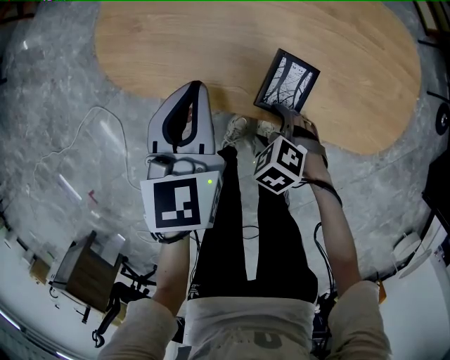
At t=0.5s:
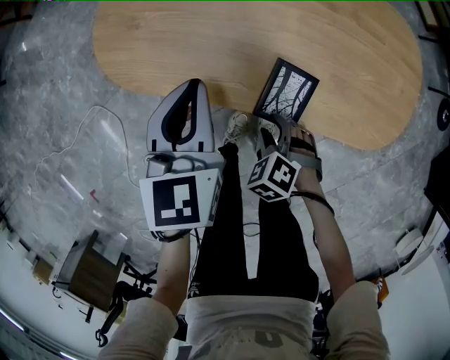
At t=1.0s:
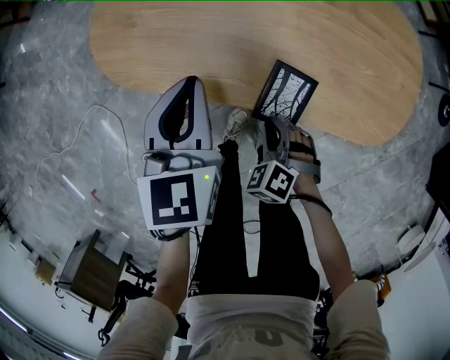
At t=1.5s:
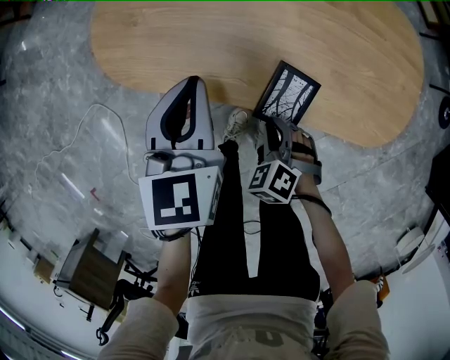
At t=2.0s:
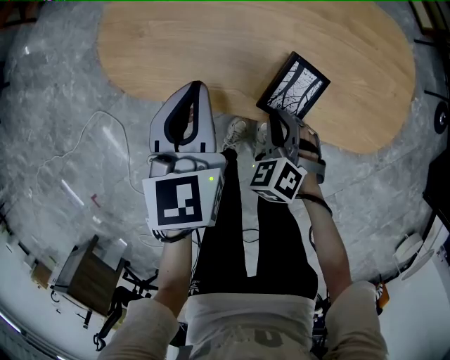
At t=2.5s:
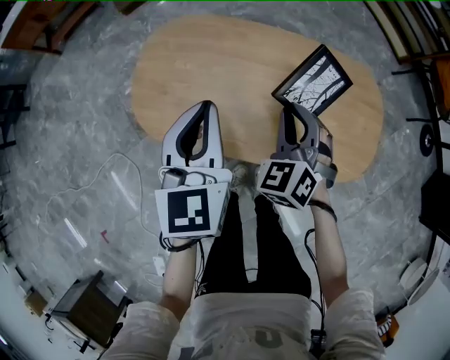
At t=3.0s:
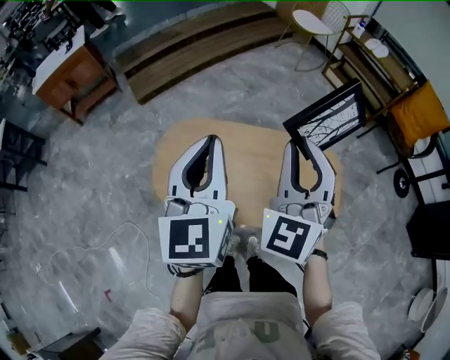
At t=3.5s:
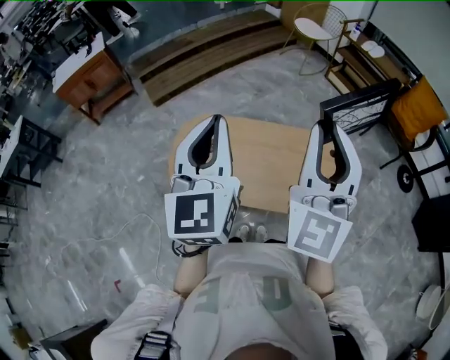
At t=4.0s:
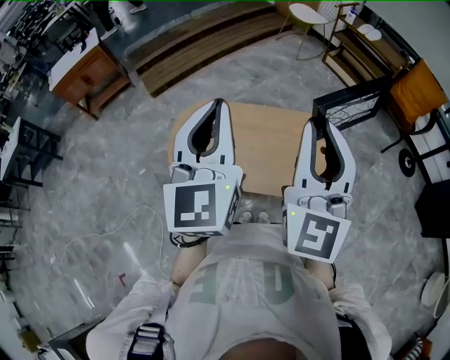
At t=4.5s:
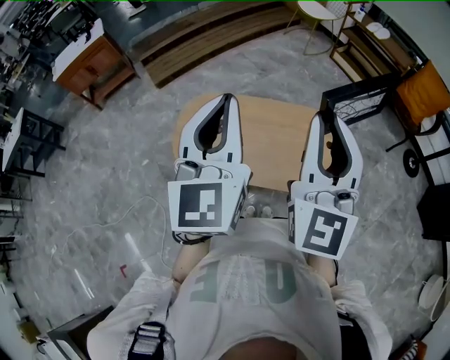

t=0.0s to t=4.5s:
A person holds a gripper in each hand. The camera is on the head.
t=0.0s to t=2.0s: The right gripper changes place by approximately 10 cm, swivels about 30 degrees, and closes.
t=2.0s to t=4.5s: Both grippers move upward, some 60 cm. The right gripper points its fingers some 70 degrees further upward, while the left gripper points its fingers some 30 degrees further upward.

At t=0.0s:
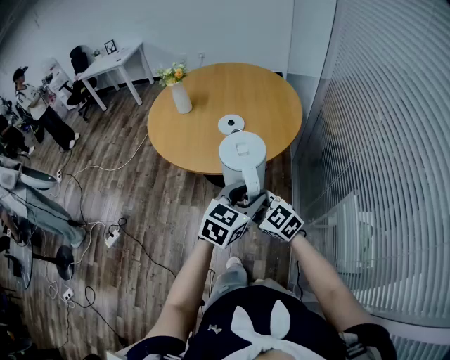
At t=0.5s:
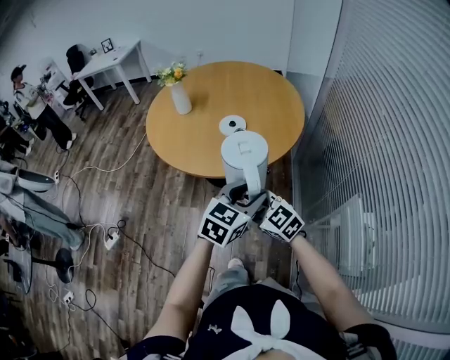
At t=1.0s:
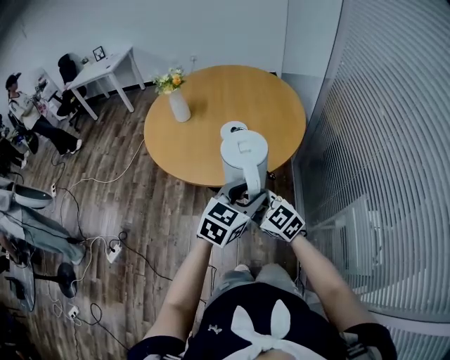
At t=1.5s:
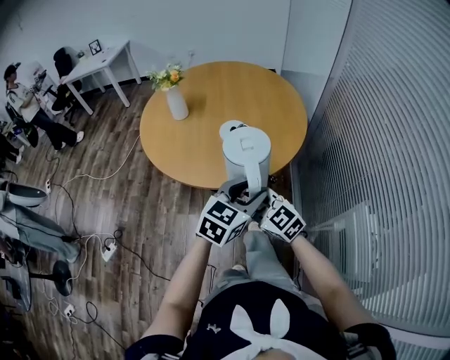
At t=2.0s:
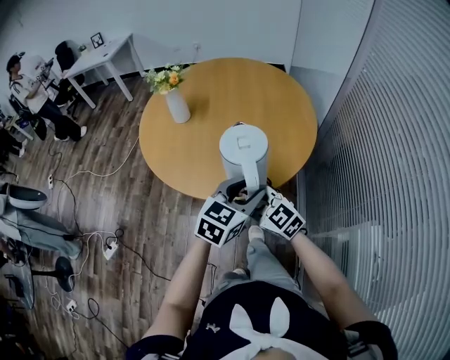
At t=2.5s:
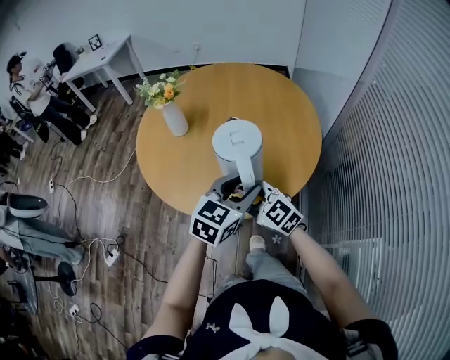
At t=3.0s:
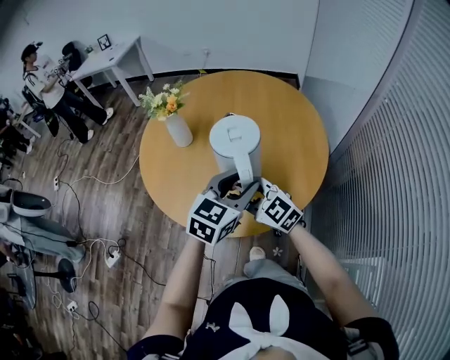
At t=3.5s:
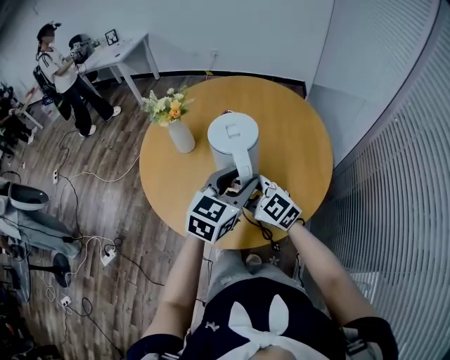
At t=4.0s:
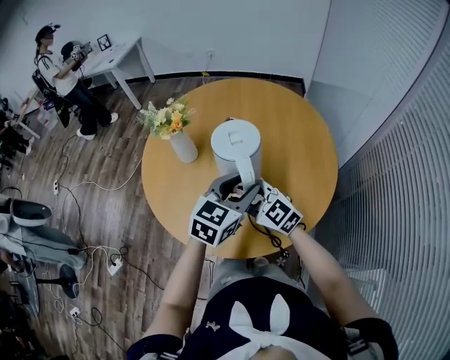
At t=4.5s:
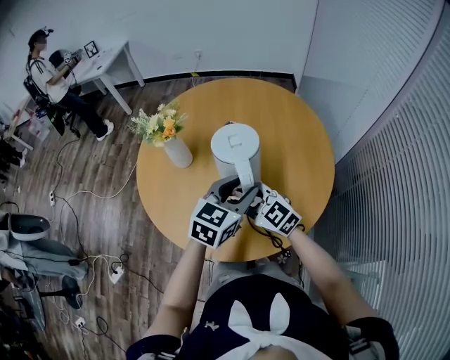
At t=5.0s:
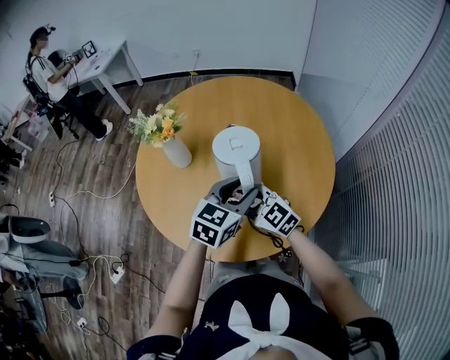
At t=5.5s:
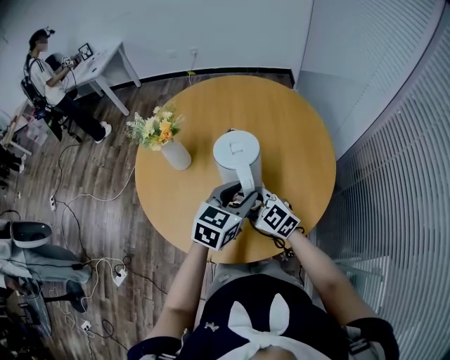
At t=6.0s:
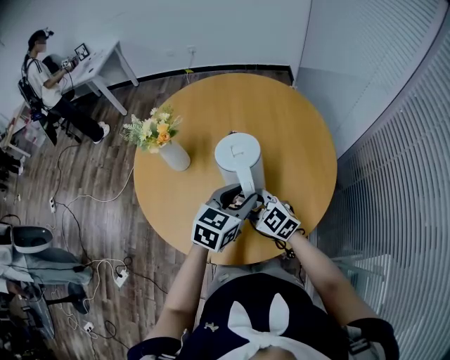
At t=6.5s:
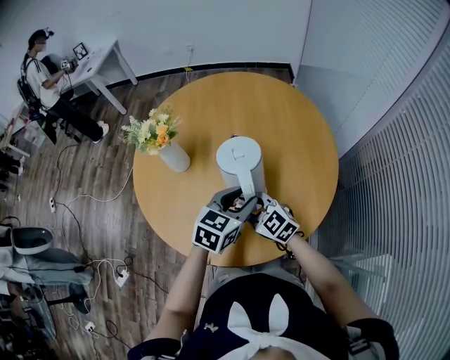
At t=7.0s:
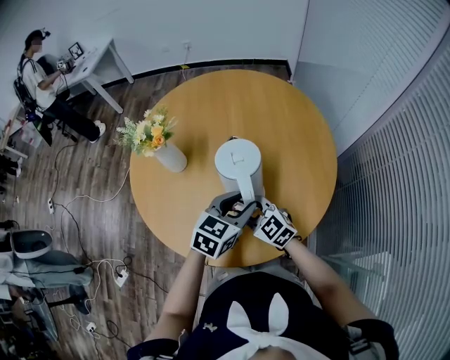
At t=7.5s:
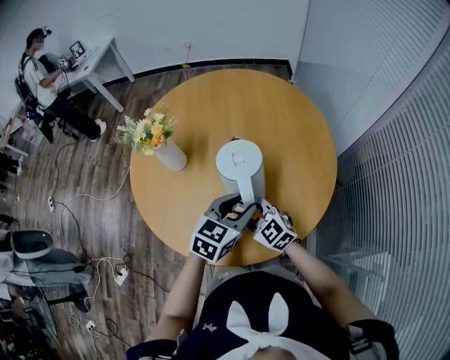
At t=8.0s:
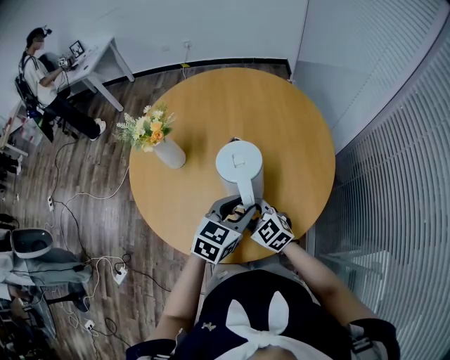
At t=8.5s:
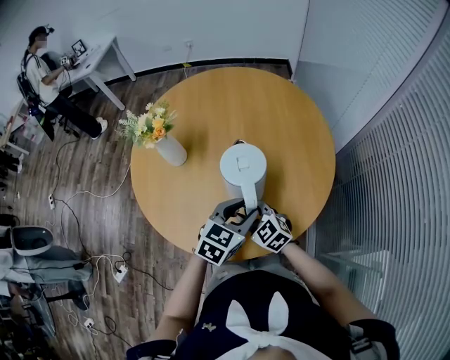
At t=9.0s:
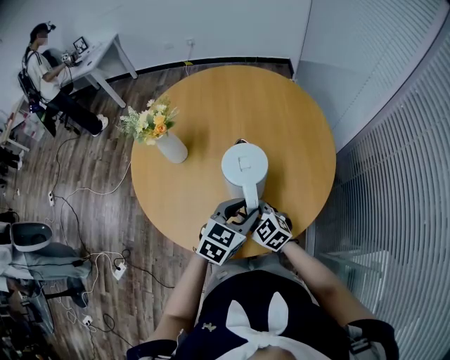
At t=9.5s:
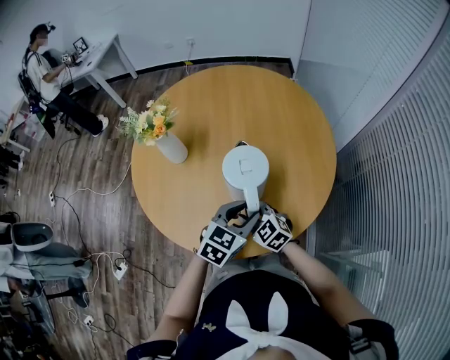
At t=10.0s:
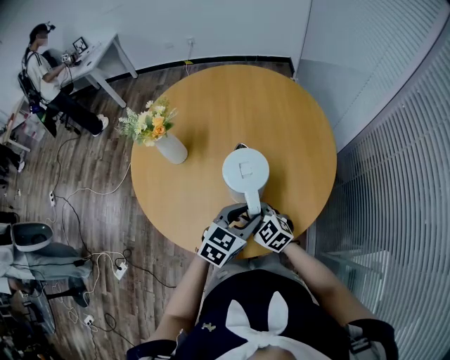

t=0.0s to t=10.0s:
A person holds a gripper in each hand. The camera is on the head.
t=0.0s to t=2.0s: Both grippers travel together forward, about 15 cm.
t=2.0s to t=4.0s: Both grippers travel together forward, some 25 cm.
t=4.0s to t=6.0s: The two grippers go approximately 5 cm downward.
t=6.0s to t=8.0s: The grippers make only small movements.
t=8.0s to t=10.0s: The grippers make only small movements.

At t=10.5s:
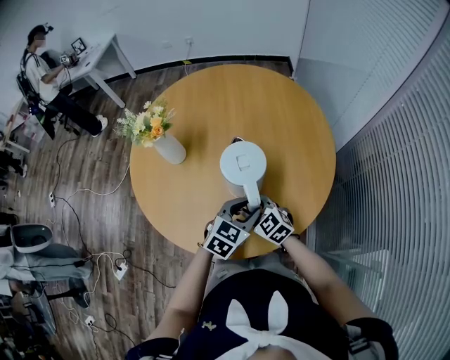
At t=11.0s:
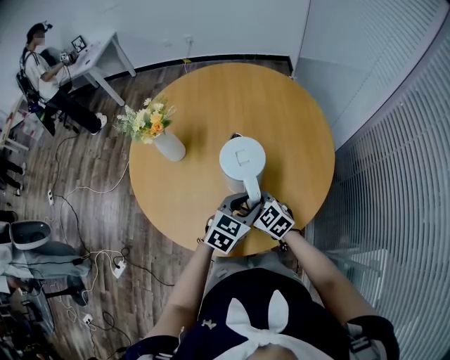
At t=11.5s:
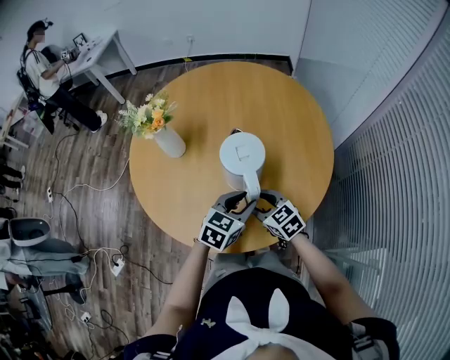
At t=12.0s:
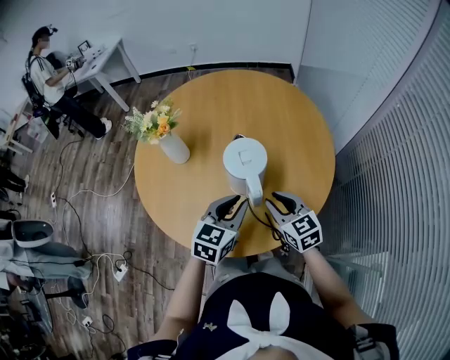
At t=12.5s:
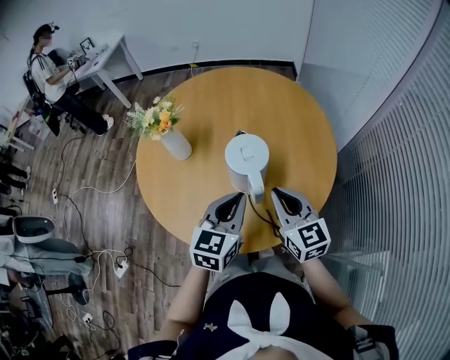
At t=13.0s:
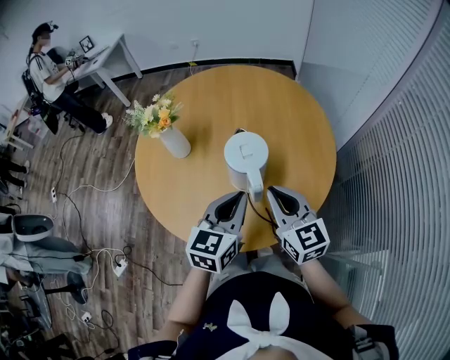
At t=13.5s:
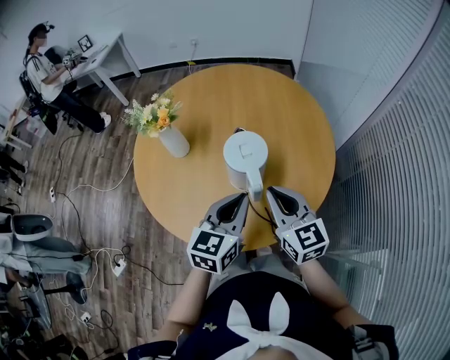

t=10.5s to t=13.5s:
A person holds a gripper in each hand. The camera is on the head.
t=10.5s to t=12.0s: The right gripper goes approximately 10 cm to the right and upward, and rotates about 20 degrees, while the left gripper is displaced upward by about 5 cm.
t=12.0s to t=13.5s: The right gripper shifts about 10 cm upward, while the left gripper is displaced upward by some 5 cm.

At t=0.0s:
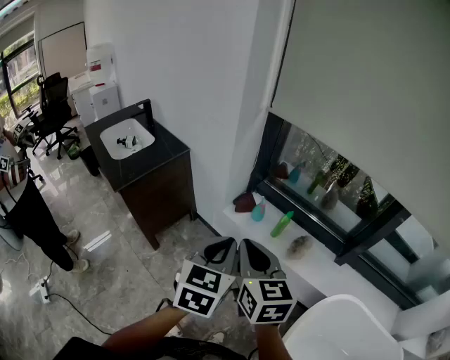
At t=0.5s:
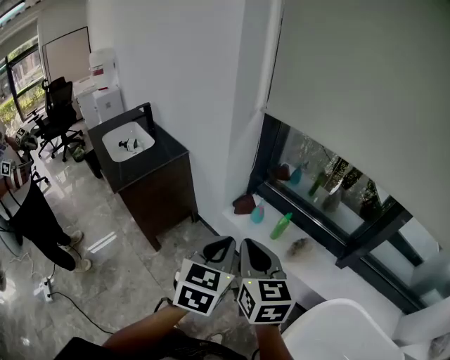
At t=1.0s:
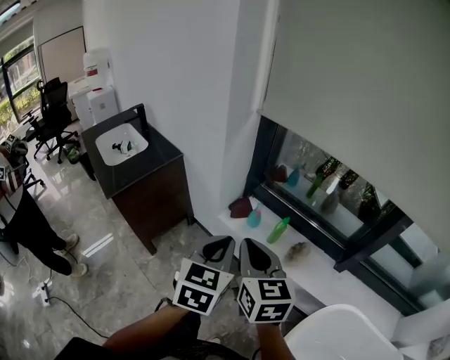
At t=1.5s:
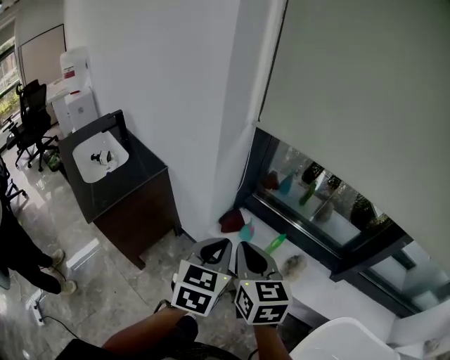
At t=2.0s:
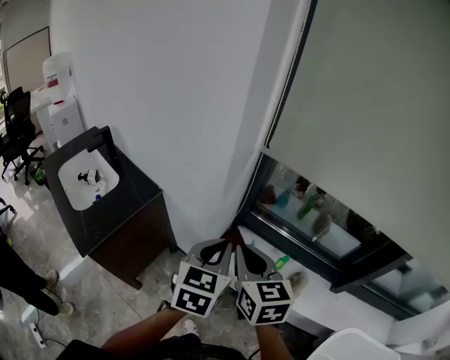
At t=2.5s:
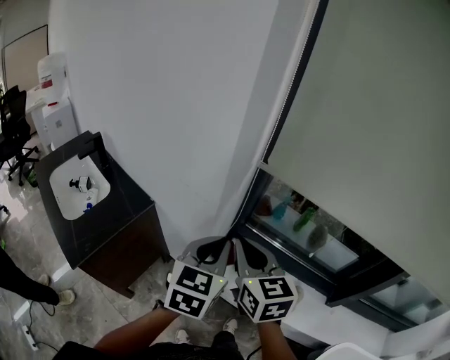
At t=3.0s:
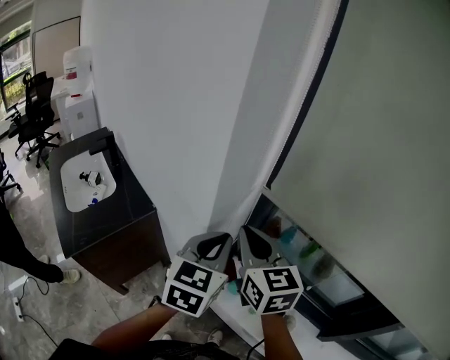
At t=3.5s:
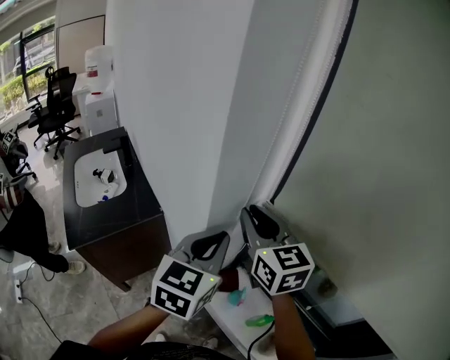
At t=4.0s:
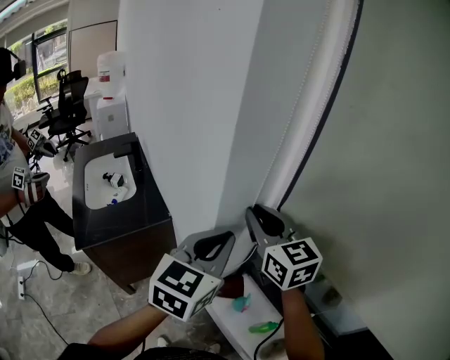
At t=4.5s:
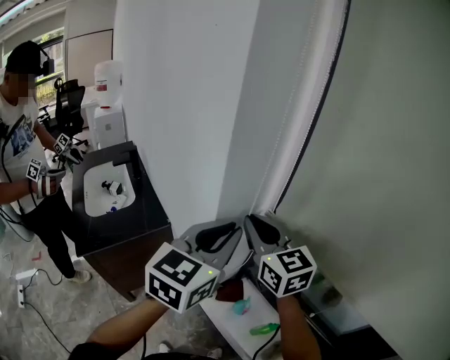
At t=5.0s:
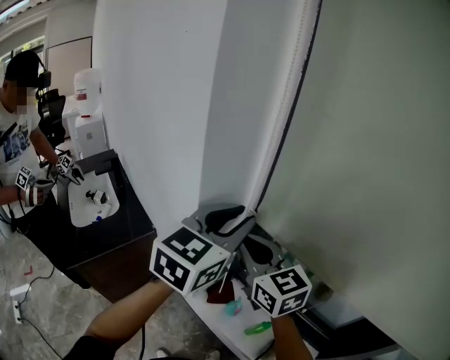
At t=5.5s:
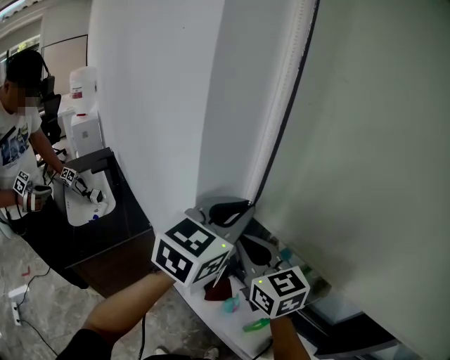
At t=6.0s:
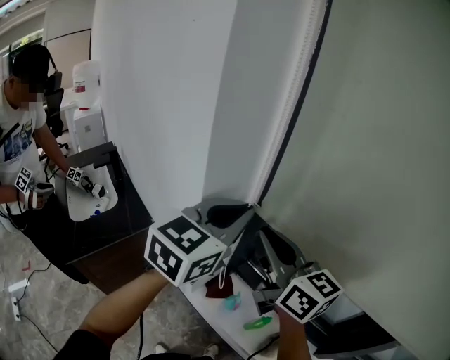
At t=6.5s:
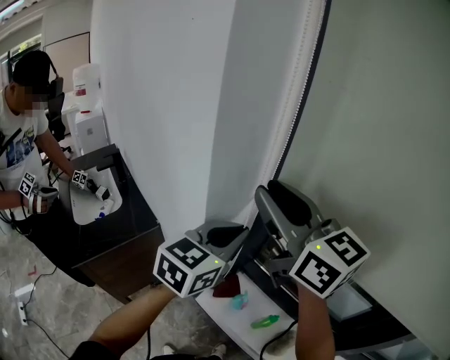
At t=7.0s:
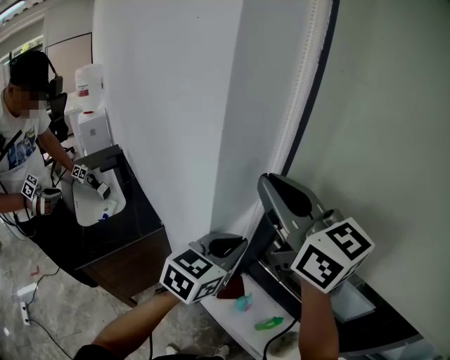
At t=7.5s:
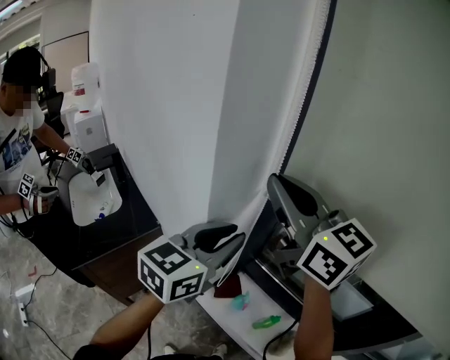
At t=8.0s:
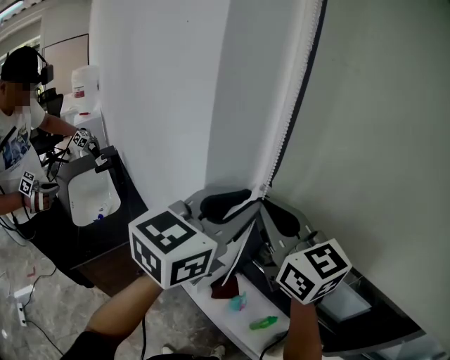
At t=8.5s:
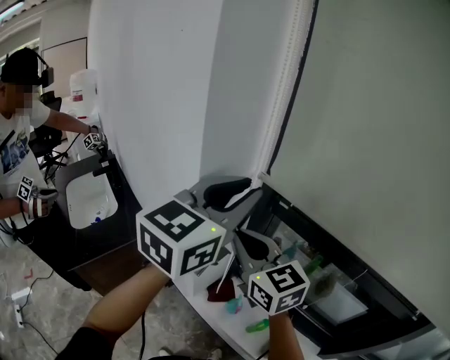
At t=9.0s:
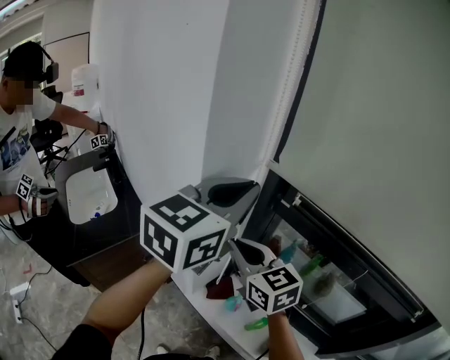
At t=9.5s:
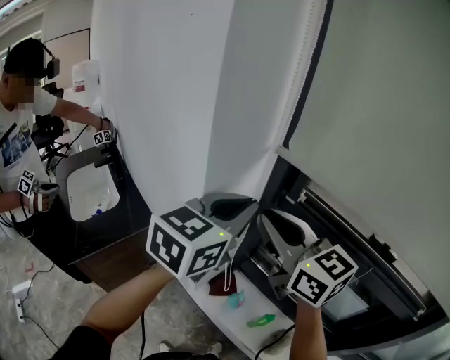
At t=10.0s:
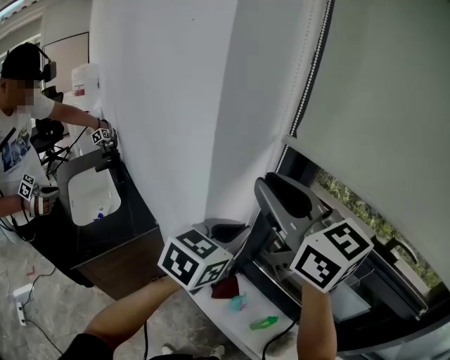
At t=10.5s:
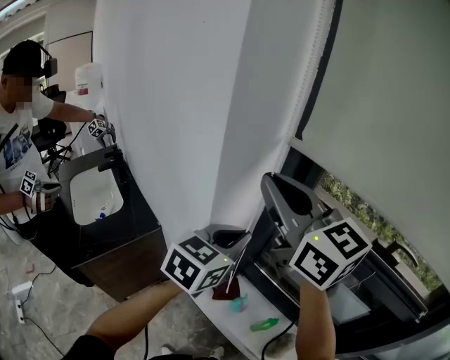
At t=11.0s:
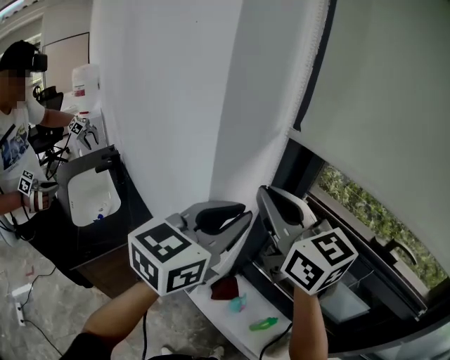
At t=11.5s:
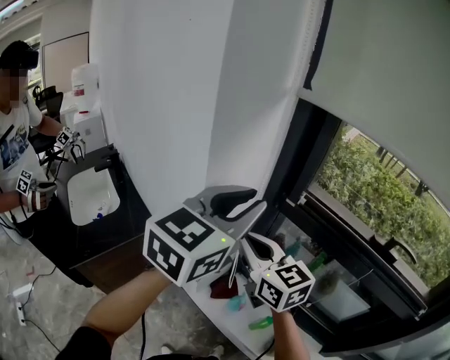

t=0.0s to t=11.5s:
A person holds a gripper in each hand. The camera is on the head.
t=0.0s to t=2.0s: The grippers both shift forward by some 25 cm.
t=2.0s to t=4.0s: Both grippers travel together forward and upward, approximately 20 cm. The right gripper changes its angle by about 40 degrees.
t=4.0s to t=6.0s: The right gripper shifts some 10 cm backward and to the right, and rotates roughly 20 degrees. Meanwhile the left gripper goes approximately 10 cm upward and to the right, changes its angle by roughly 20 degrees, and opens, then closes again.
t=6.0s to t=7.5s: The right gripper travels upward by some 10 cm, while the left gripper goes approximately 5 cm downward.
t=7.5s to t=9.5s: The left gripper shifts approximately 5 cm upward; the right gripper shifts roughly 10 cm downward.
t=9.5s to t=11.5s: The right gripper heads downward, covering roughly 10 cm; the left gripper reaches about 10 cm downward, then returns.
